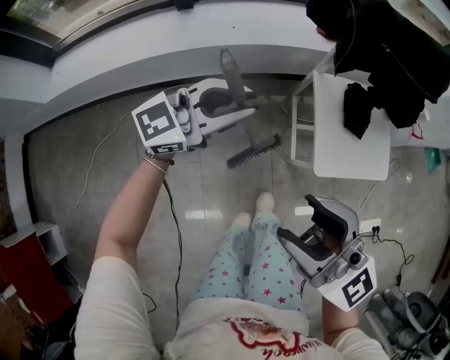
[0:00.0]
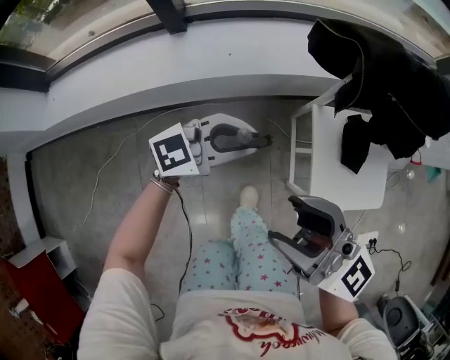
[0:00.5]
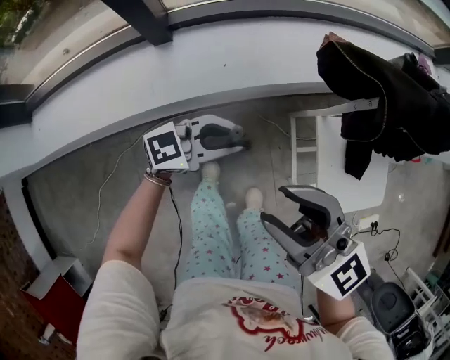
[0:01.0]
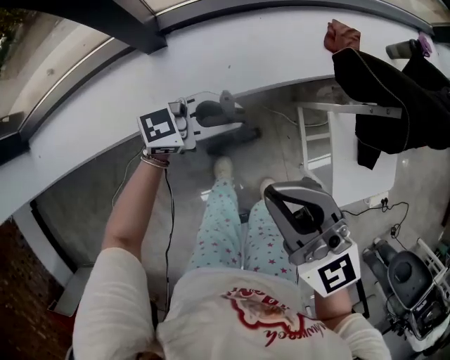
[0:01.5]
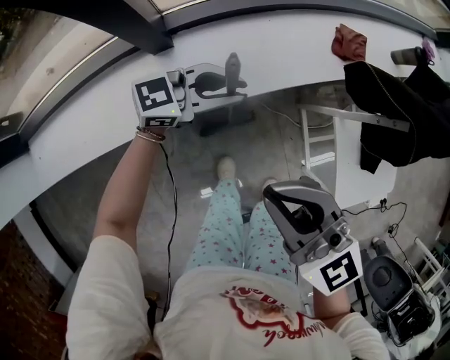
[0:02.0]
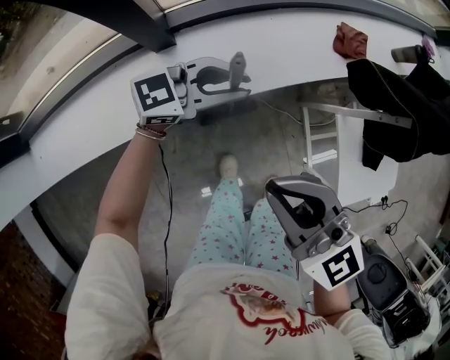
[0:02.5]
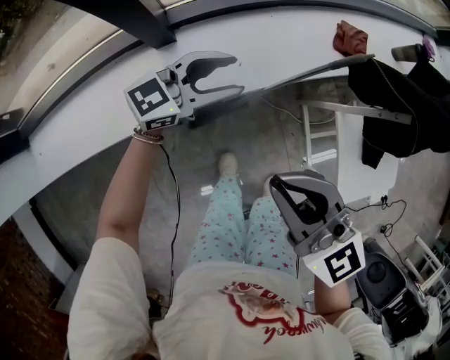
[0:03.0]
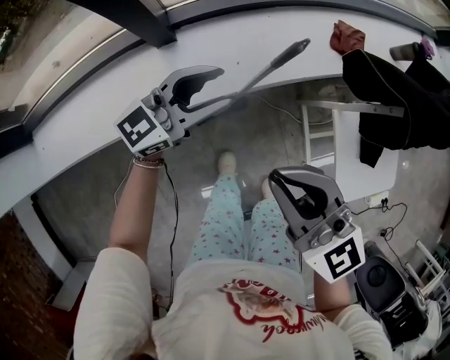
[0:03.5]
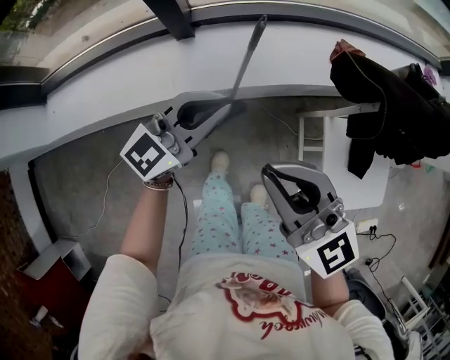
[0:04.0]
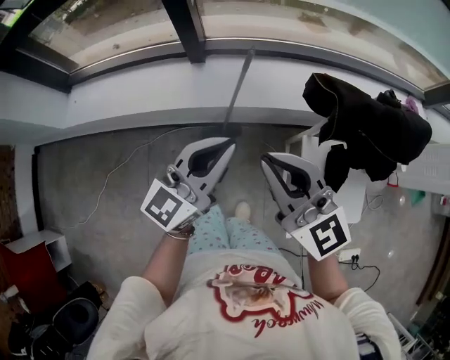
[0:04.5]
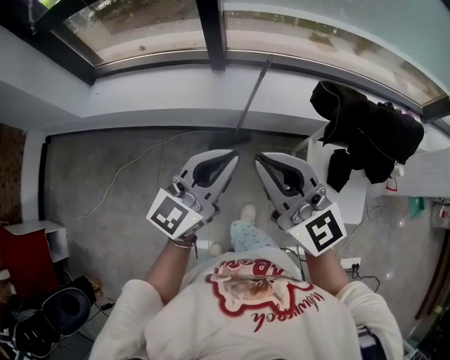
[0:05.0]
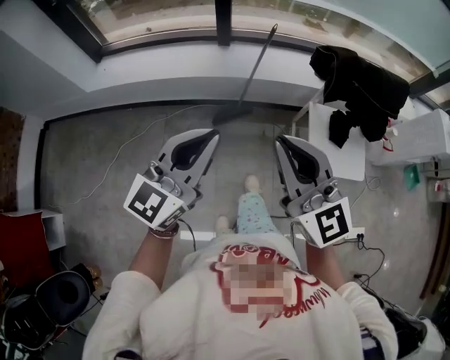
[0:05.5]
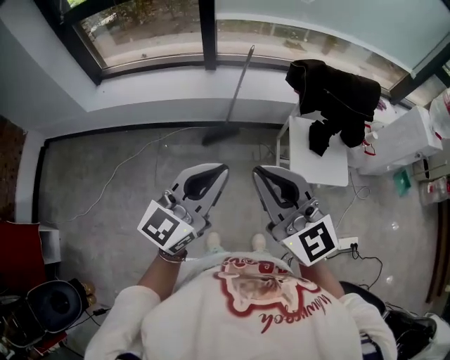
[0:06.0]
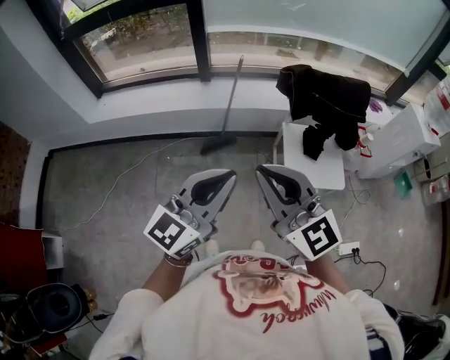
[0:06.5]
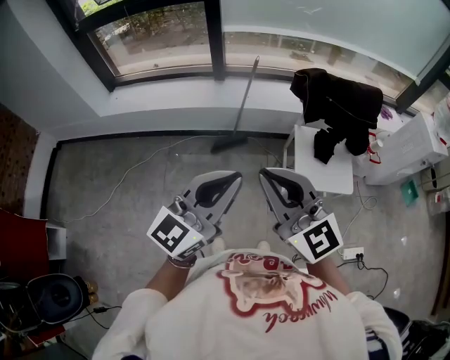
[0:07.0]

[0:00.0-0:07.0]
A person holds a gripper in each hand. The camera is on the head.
0:00.0 to 0:02.0: The left gripper moves some 35 cm, and changes its angle by roughly 30 degrees; the right gripper shifts by approximately 40 cm, and closes up.
0:02.0 to 0:03.5: The left gripper goes about 5 cm upward, rotates some 20 degrees, and opens its fingers.
0:03.5 to 0:05.0: The right gripper moves about 30 cm, and turns by approximately 20 degrees. Meanwhile the left gripper moves approximately 40 cm, changes its angle by approximately 40 degrees, and closes its fingers.
0:05.0 to 0:07.0: The grippers both shift backward by some 30 cm.

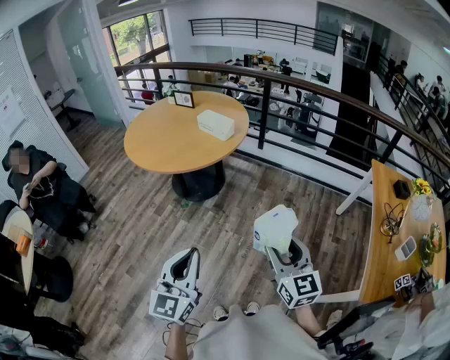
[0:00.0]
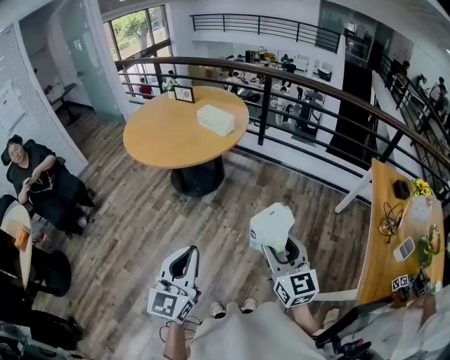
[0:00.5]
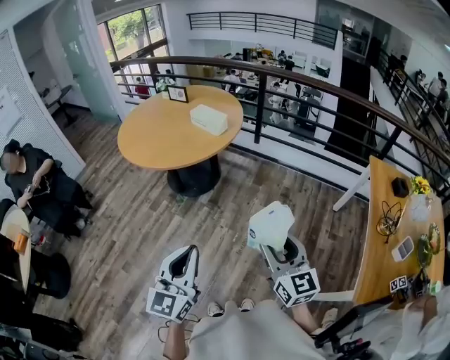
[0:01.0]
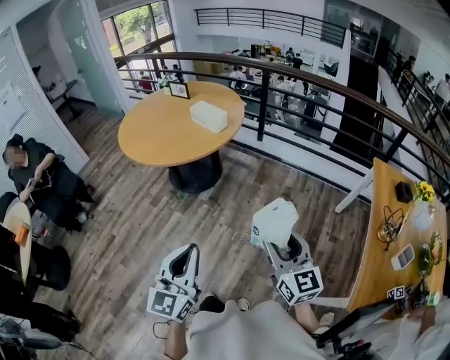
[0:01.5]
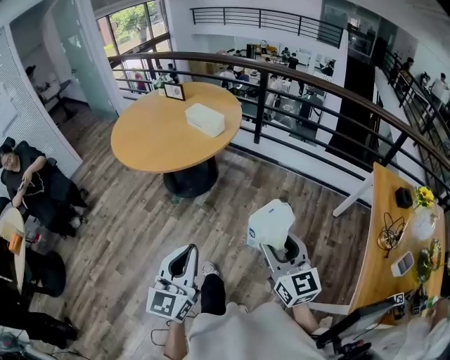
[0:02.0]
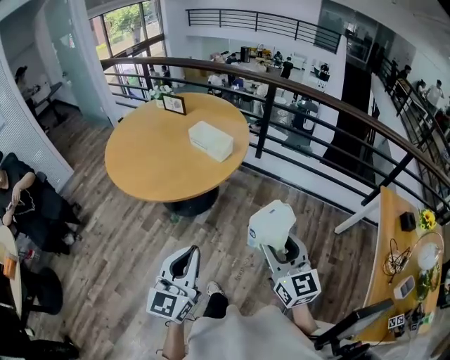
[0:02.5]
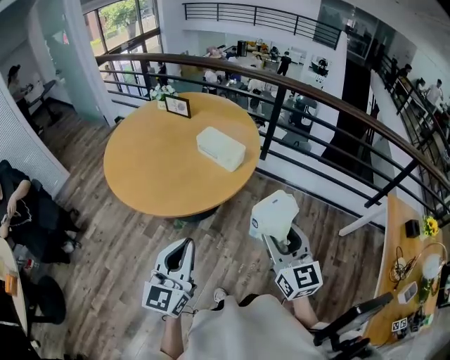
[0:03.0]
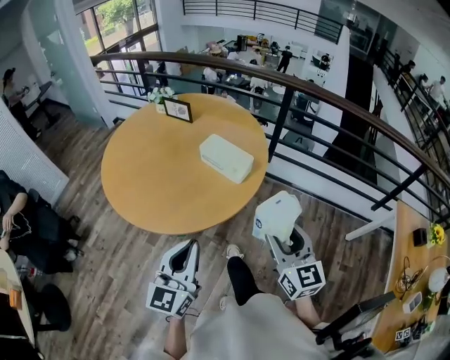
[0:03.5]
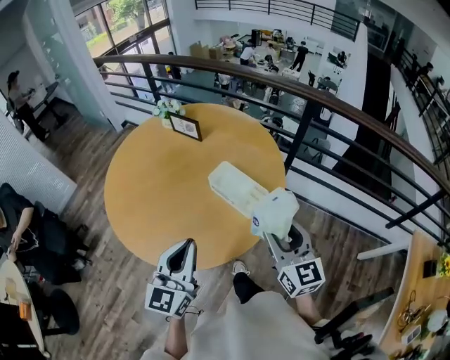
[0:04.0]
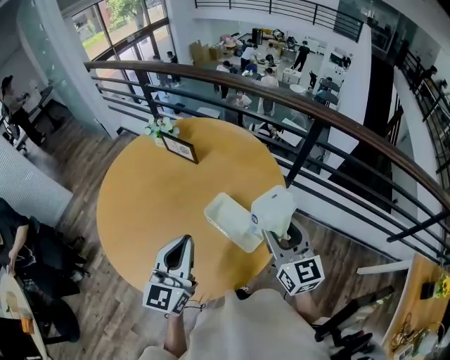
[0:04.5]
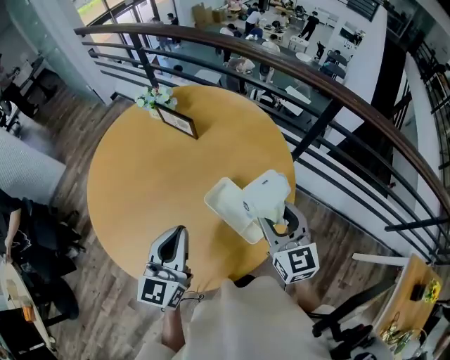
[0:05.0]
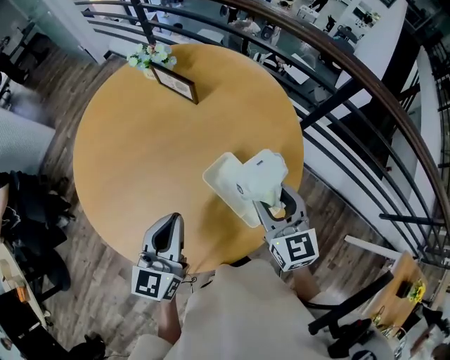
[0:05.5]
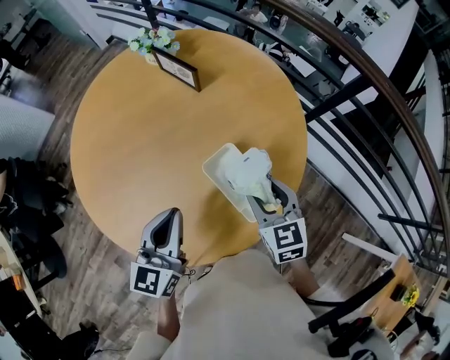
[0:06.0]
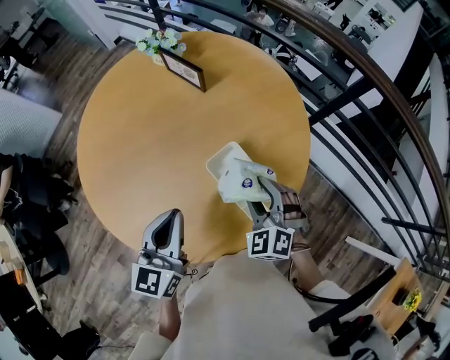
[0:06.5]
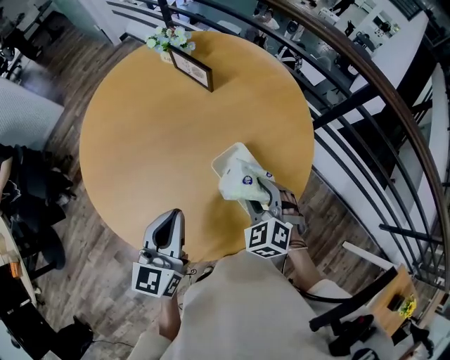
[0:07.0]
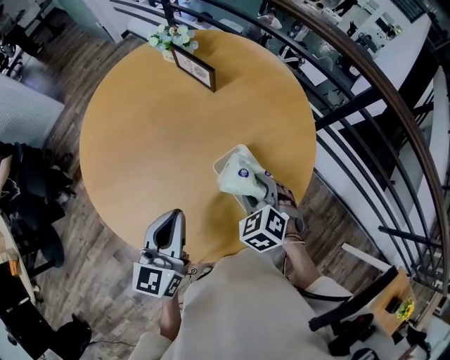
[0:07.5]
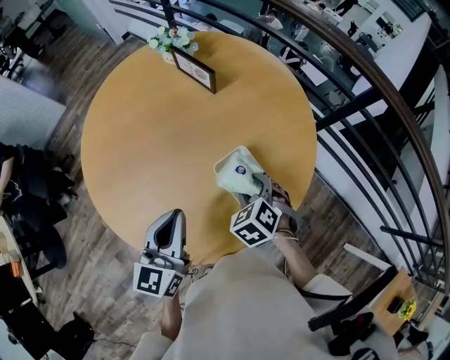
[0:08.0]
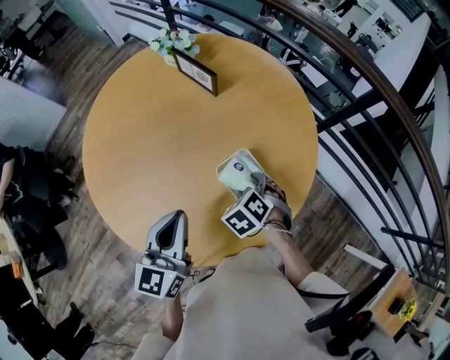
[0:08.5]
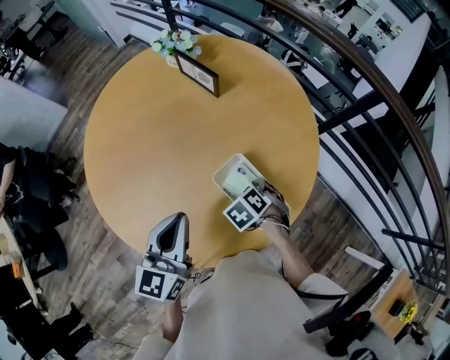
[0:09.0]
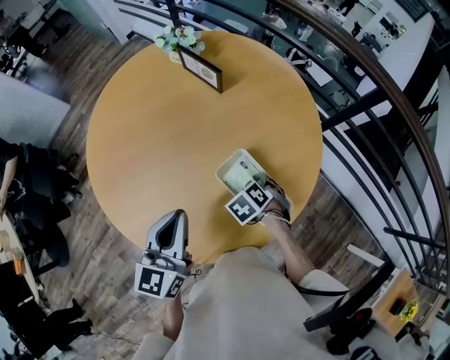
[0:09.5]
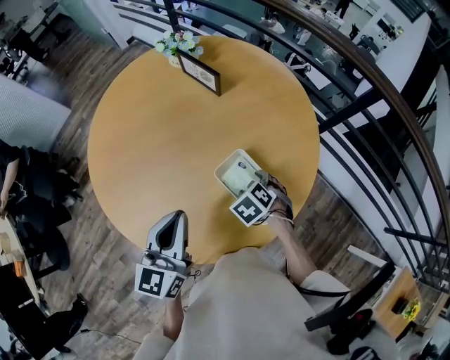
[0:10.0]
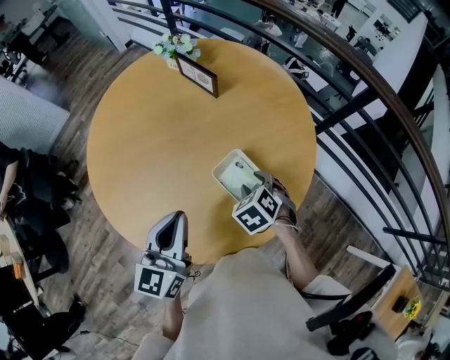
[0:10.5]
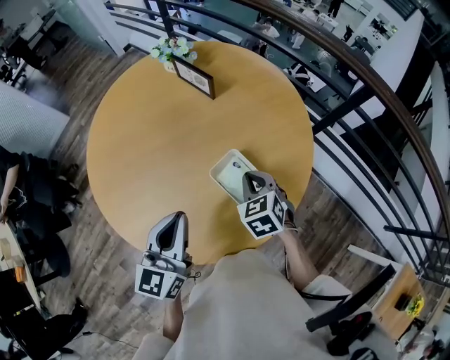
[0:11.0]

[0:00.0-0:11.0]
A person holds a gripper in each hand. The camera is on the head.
0:00.0 to 0:02.0: The left gripper goes some 10 cm forward and to the right. The right gripper goes about 5 cm forward.
0:02.0 to 0:03.5: The right gripper shifts roughly 30 cm forward, while the left gripper is displaced forward and to the left by roughly 30 cm.
0:03.5 to 0:05.5: The two grippers go roughly 30 cm forward.
0:05.5 to 0:07.5: The right gripper heads downward, covering some 10 cm, and points its fingers roughly 40 degrees further downward.
0:07.5 to 0:09.0: The right gripper travels downward by some 10 cm, and swivels about 30 degrees.
0:09.0 to 0:11.0: The right gripper moves upward, roughly 10 cm, points its fingers roughly 30 degrees further upward, and closes up.

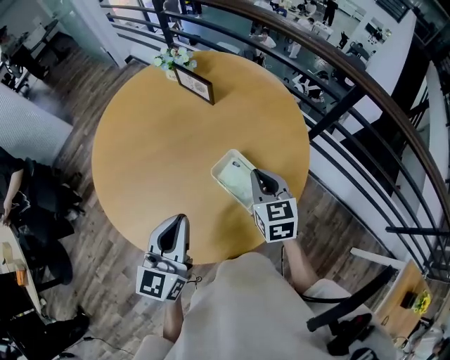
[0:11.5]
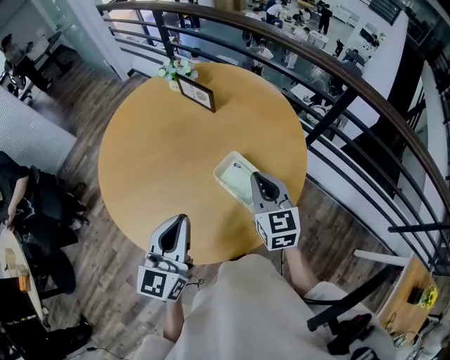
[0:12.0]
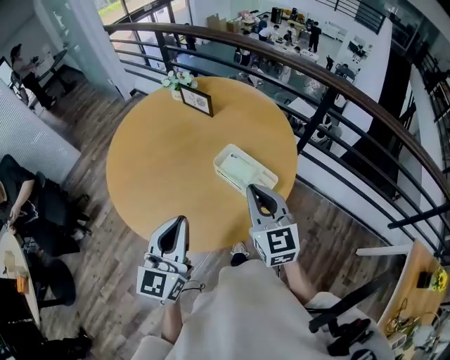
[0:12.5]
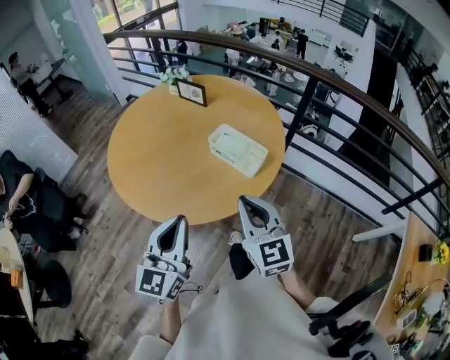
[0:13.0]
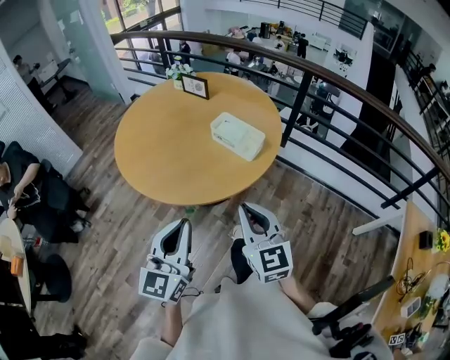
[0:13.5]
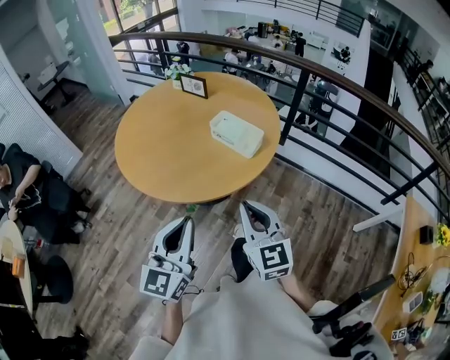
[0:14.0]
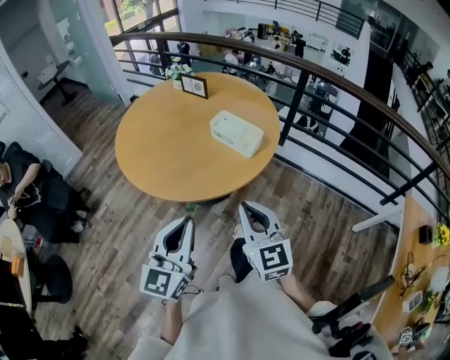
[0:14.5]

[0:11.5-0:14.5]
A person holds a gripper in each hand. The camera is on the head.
0:11.5 to 0:13.0: The left gripper moves backward, approximately 20 cm. Meanwhile the right gripper moves backward and upward, about 30 cm, and swivels approximately 30 degrees.
0:13.0 to 0:14.5: Both grippers move backward, roughly 10 cm.

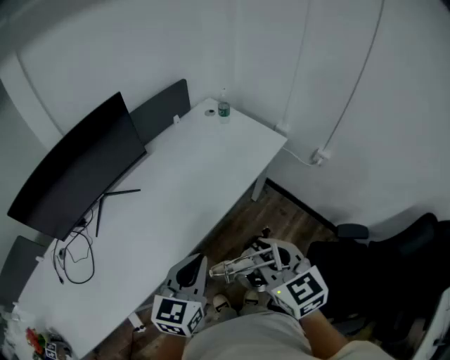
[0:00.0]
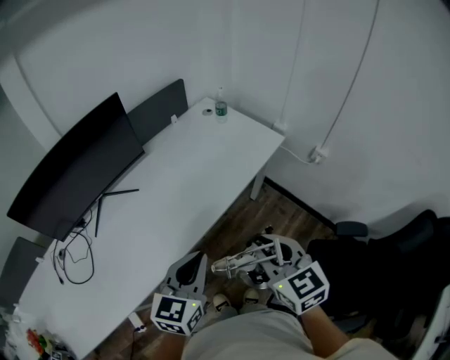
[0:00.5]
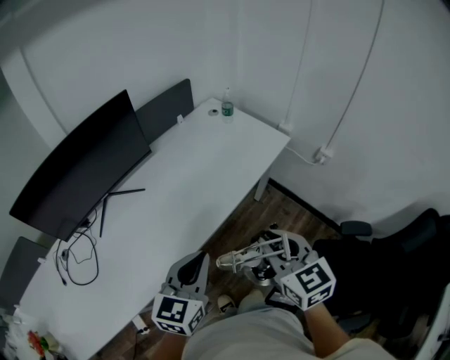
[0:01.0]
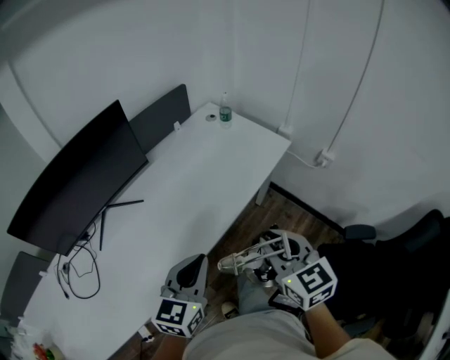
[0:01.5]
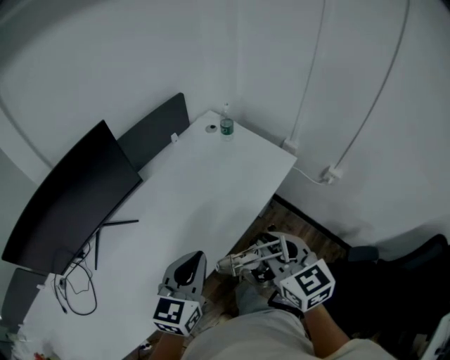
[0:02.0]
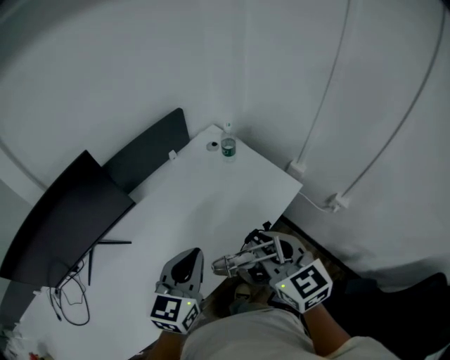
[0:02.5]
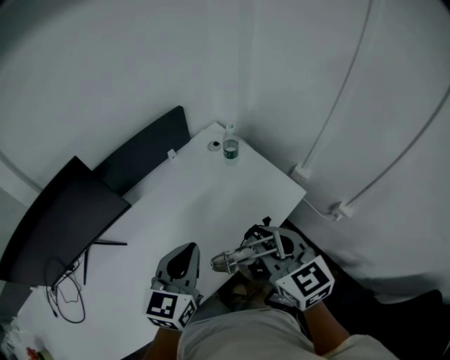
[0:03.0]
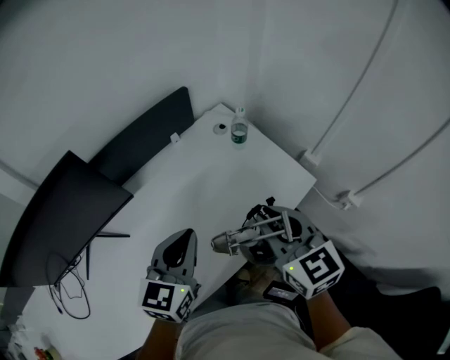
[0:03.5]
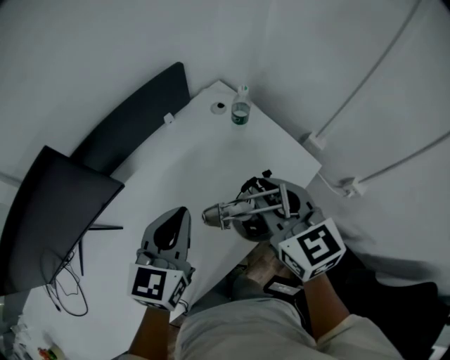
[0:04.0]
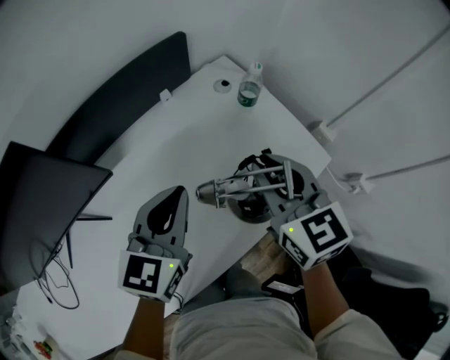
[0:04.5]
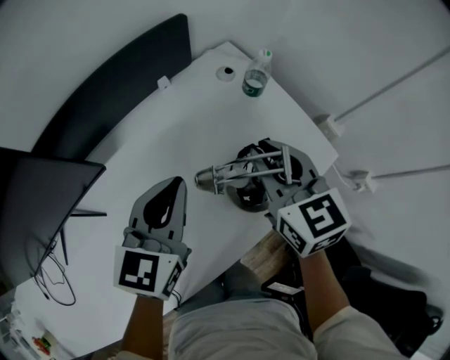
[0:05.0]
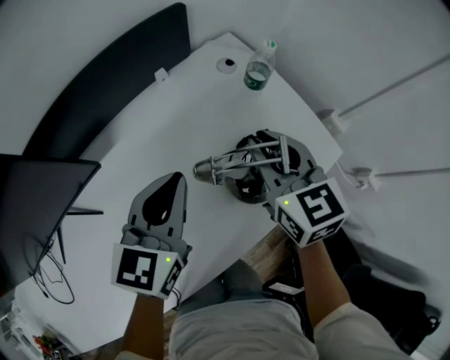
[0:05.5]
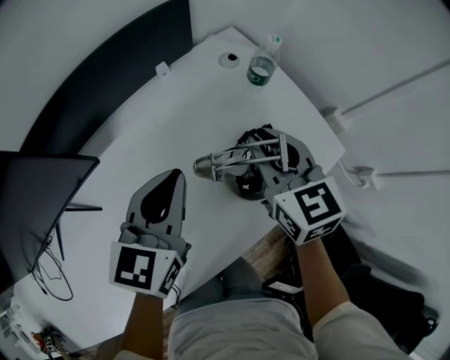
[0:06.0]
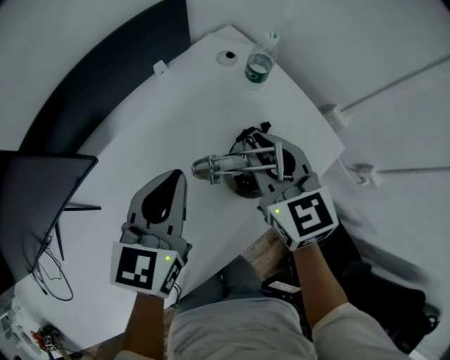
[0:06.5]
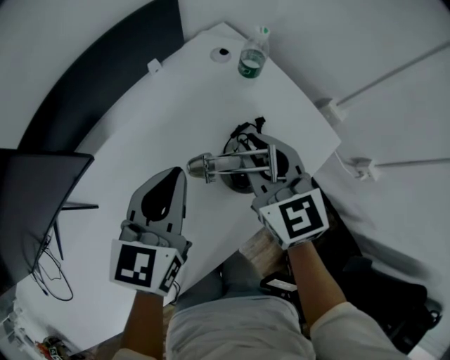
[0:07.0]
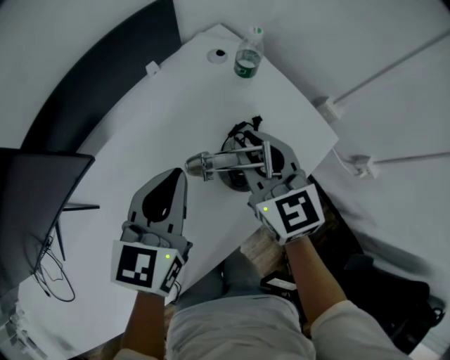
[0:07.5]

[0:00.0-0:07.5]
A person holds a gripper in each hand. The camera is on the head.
0:00.0 to 0:02.0: Both grippers travel together forward, approximately 15 cm.
0:02.0 to 0:04.0: Both grippers travel together forward, some 25 cm.
0:04.0 to 0:05.5: Both grippers move forward and downward, roughly 10 cm.
0:05.5 to 0:07.5: The grippers move only a little.
